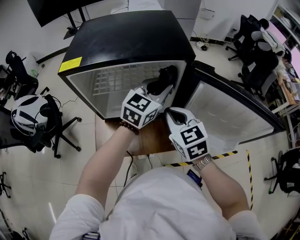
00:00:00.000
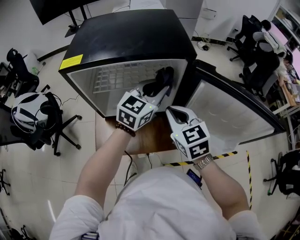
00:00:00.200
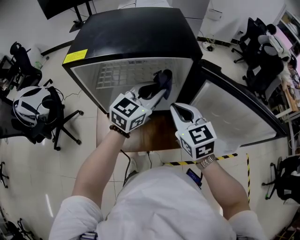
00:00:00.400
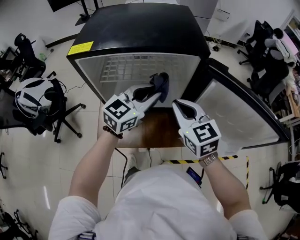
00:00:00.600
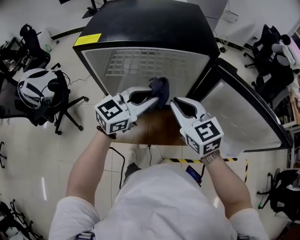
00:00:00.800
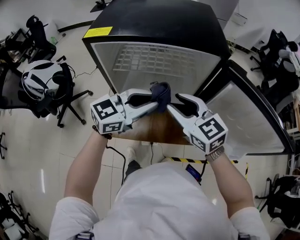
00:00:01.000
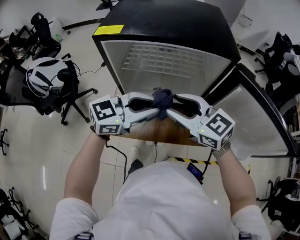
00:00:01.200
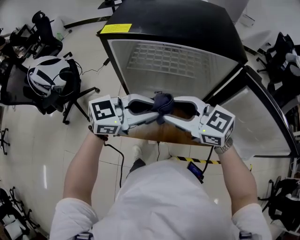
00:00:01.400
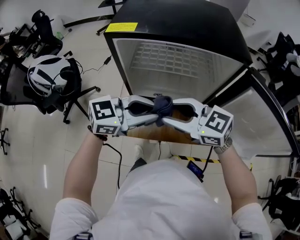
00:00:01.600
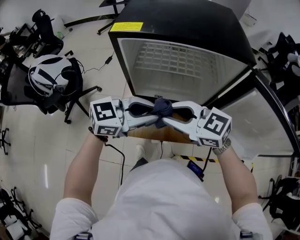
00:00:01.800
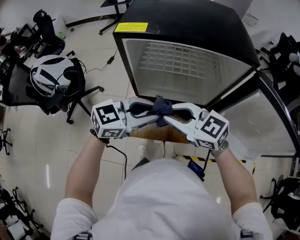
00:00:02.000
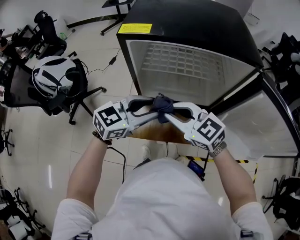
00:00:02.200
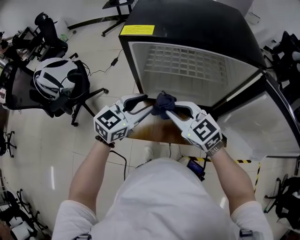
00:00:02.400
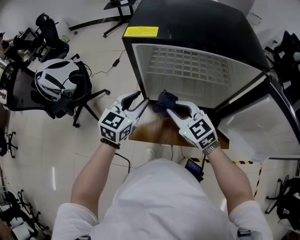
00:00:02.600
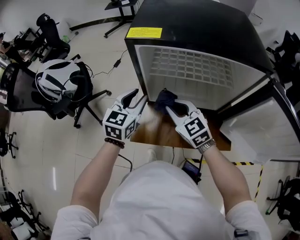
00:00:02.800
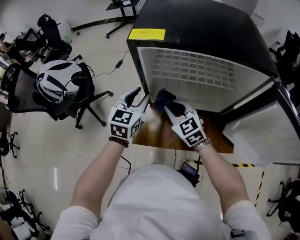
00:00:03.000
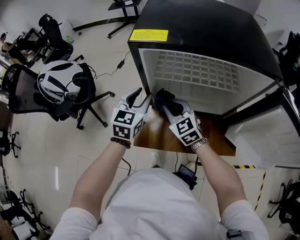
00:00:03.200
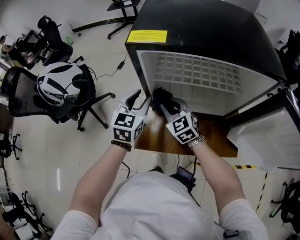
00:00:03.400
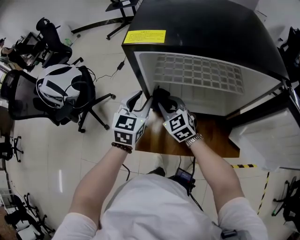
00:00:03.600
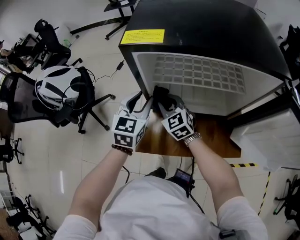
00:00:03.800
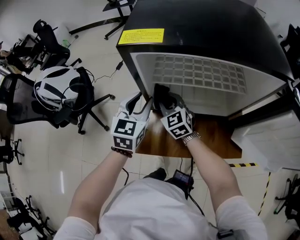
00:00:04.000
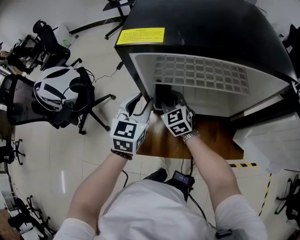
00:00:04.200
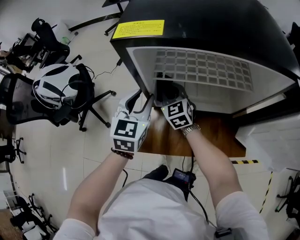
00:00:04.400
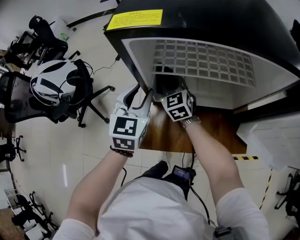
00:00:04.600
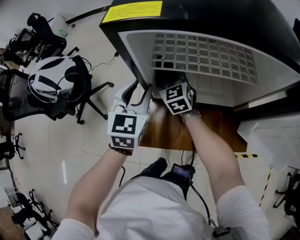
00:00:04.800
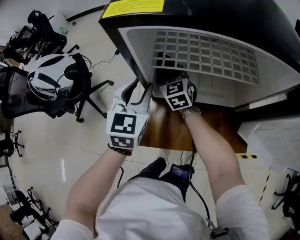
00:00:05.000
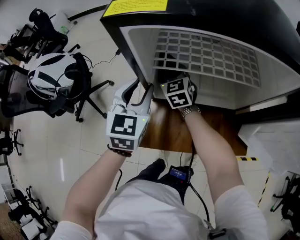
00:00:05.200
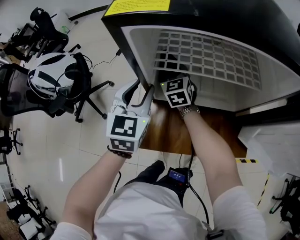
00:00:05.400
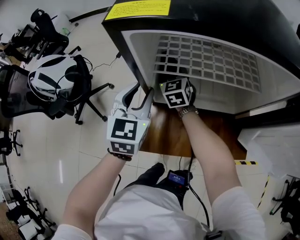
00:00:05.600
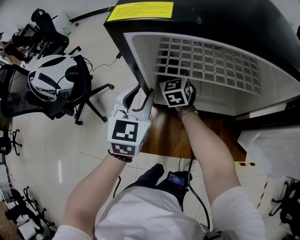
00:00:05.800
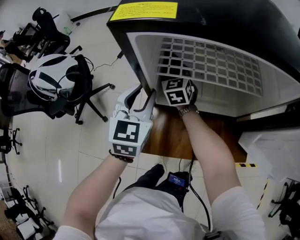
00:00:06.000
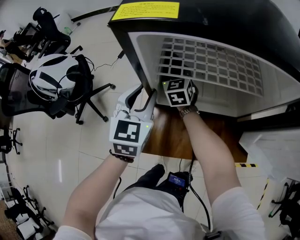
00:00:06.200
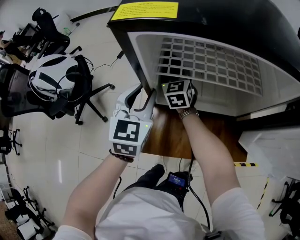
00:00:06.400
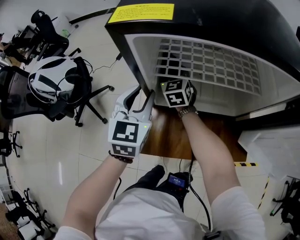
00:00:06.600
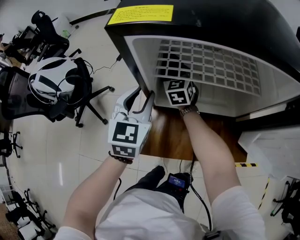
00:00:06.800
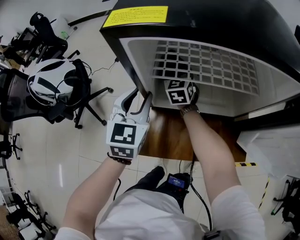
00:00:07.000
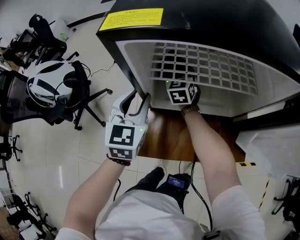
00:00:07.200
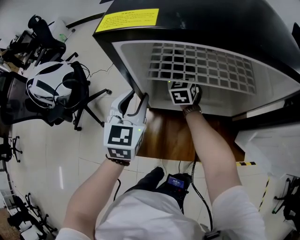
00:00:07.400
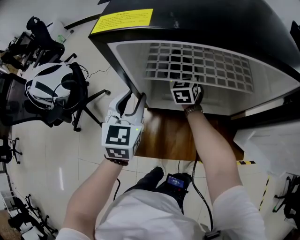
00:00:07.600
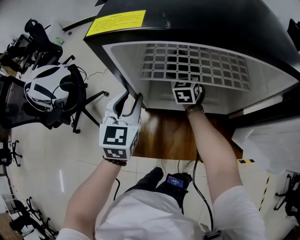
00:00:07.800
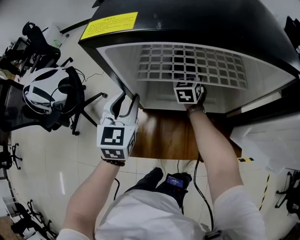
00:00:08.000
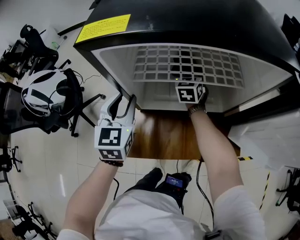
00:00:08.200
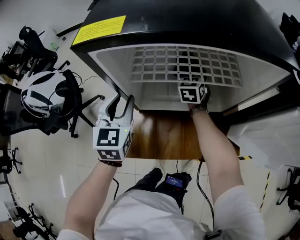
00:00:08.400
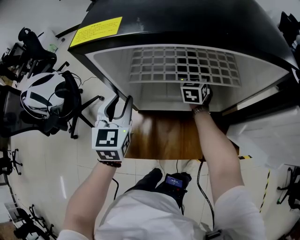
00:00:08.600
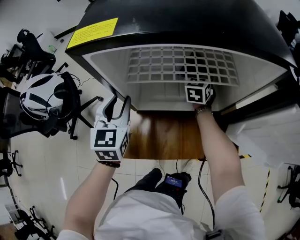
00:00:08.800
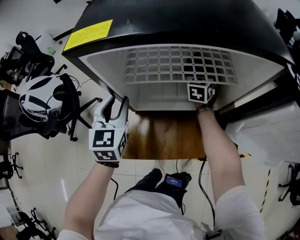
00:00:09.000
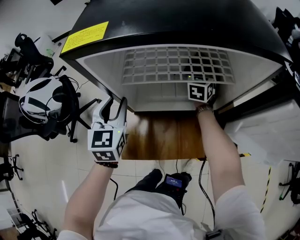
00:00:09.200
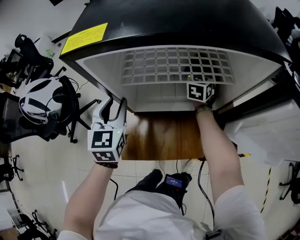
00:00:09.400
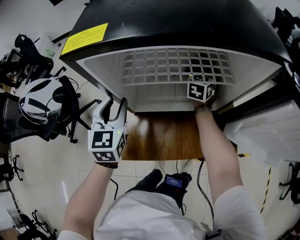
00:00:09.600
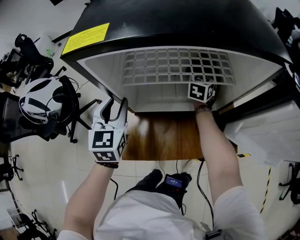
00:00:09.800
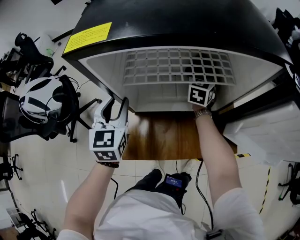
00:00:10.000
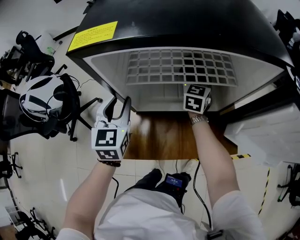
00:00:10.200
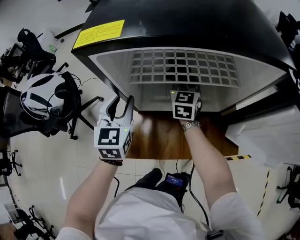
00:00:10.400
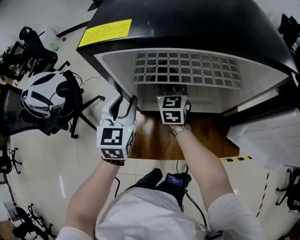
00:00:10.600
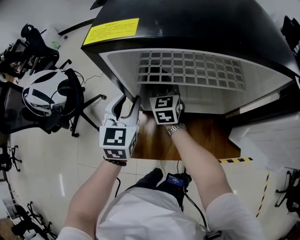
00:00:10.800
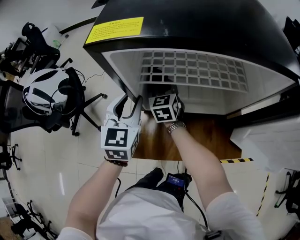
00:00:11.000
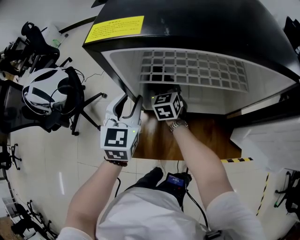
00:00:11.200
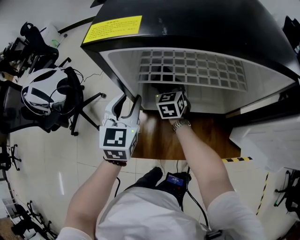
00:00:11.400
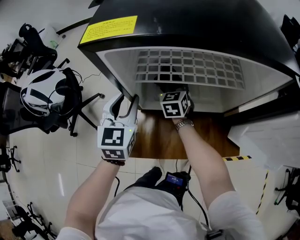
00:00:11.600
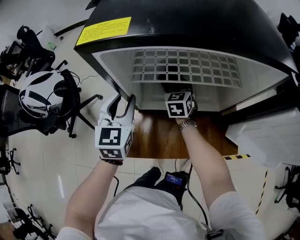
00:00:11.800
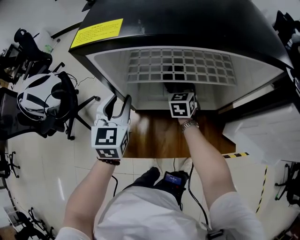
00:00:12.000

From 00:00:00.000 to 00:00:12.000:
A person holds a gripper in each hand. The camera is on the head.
From 00:00:00.000 to 00:00:01.600: The left gripper ends up approximately 25 cm from where it was, and rotates approximately 30 degrees, while the right gripper ends up some 15 cm from where it was, swivels some 50 degrees, and opens its fingers.
From 00:00:01.600 to 00:00:03.000: The right gripper ends up some 20 cm from where it was, rotates approximately 30 degrees, and closes its fingers. The left gripper shifts by about 20 cm, rotates some 50 degrees, and opens.
From 00:00:03.000 to 00:00:04.400: The right gripper heads forward and downward, covering about 15 cm.
From 00:00:04.400 to 00:00:06.000: The right gripper moves forward, about 10 cm.
From 00:00:06.000 to 00:00:07.600: The right gripper travels to the right by approximately 10 cm.
From 00:00:07.600 to 00:00:09.000: The right gripper heads to the right, covering about 15 cm.
From 00:00:09.000 to 00:00:10.400: The right gripper shifts some 10 cm to the left and backward.
From 00:00:10.400 to 00:00:12.000: The right gripper is displaced downward by approximately 10 cm, and moves some 15 cm to the left and comes back.

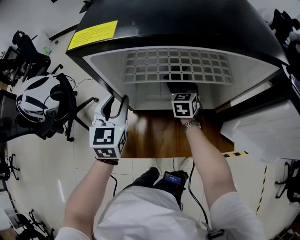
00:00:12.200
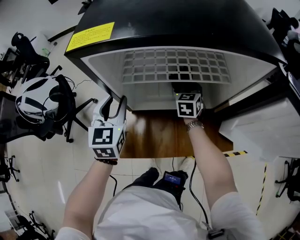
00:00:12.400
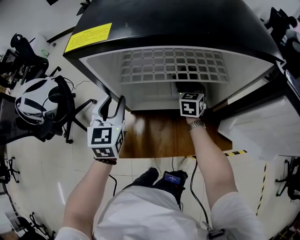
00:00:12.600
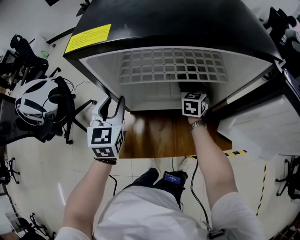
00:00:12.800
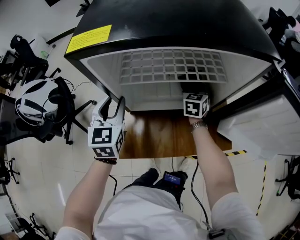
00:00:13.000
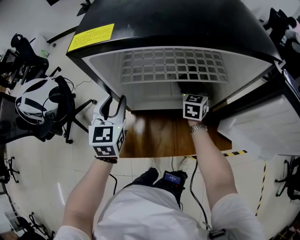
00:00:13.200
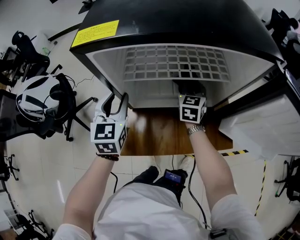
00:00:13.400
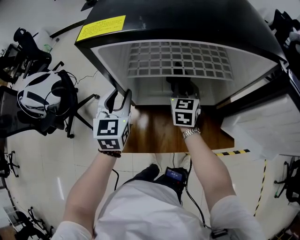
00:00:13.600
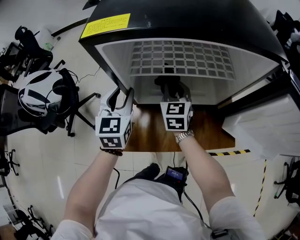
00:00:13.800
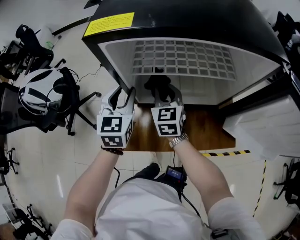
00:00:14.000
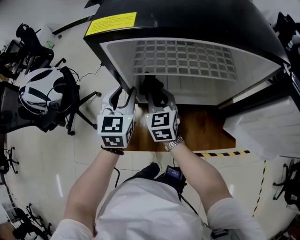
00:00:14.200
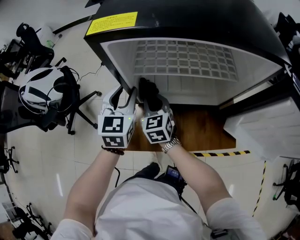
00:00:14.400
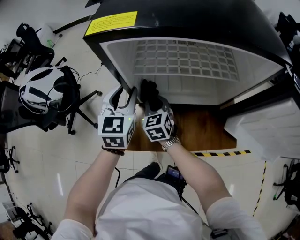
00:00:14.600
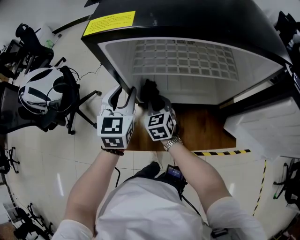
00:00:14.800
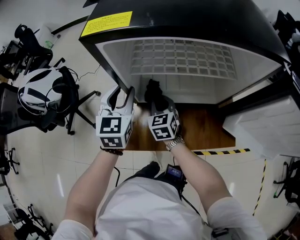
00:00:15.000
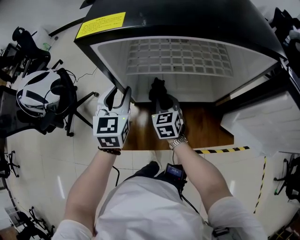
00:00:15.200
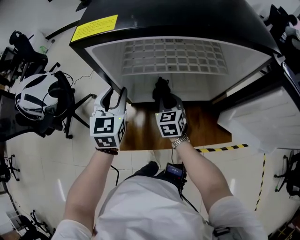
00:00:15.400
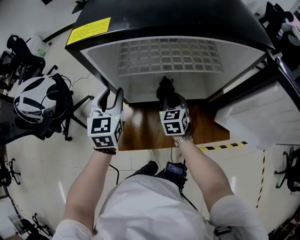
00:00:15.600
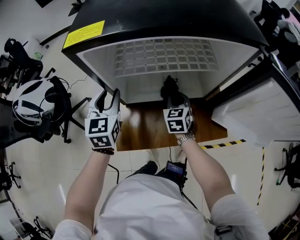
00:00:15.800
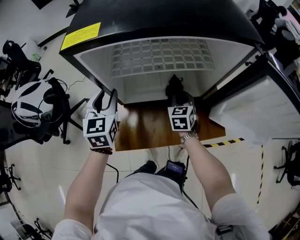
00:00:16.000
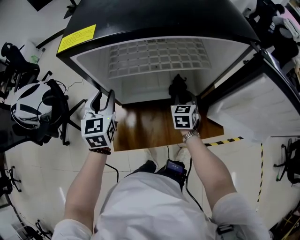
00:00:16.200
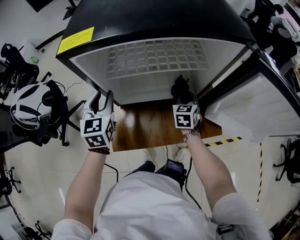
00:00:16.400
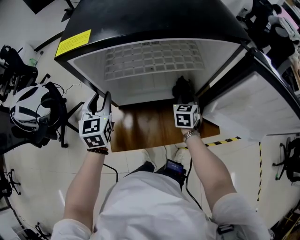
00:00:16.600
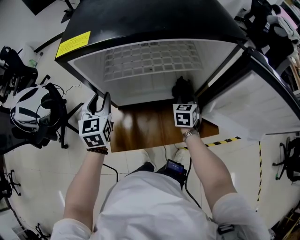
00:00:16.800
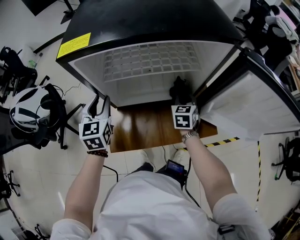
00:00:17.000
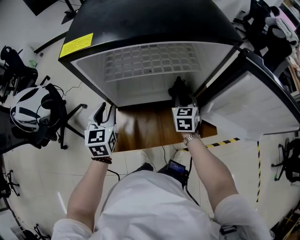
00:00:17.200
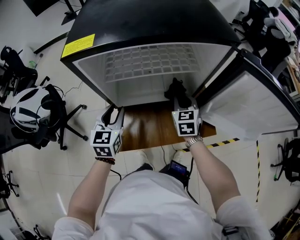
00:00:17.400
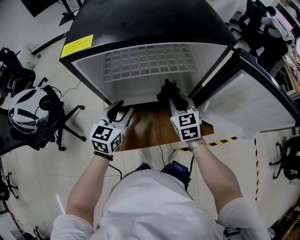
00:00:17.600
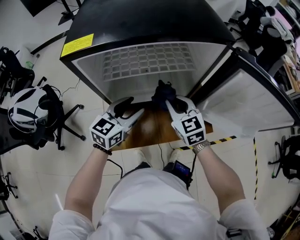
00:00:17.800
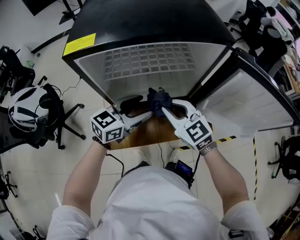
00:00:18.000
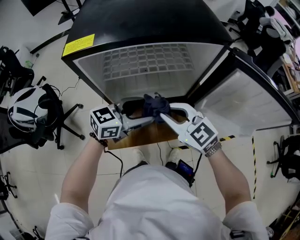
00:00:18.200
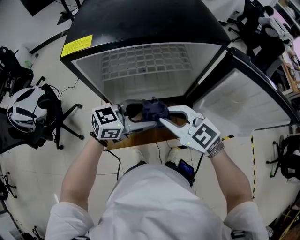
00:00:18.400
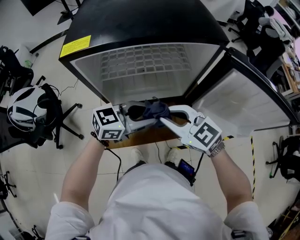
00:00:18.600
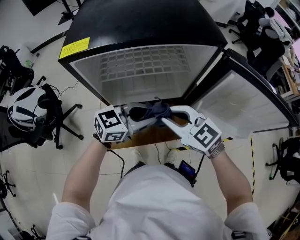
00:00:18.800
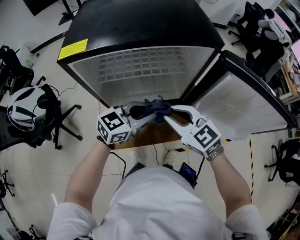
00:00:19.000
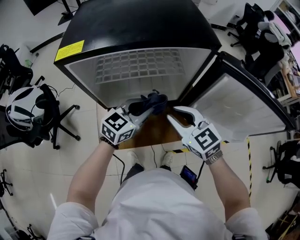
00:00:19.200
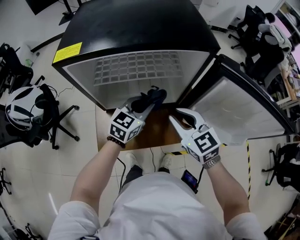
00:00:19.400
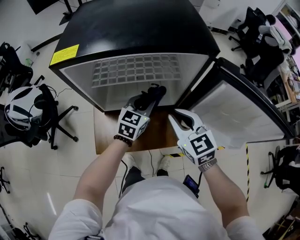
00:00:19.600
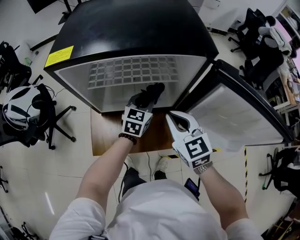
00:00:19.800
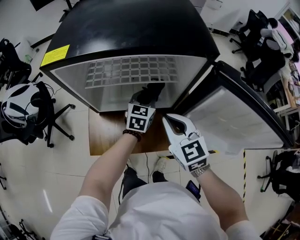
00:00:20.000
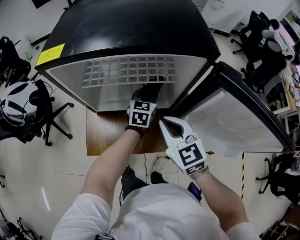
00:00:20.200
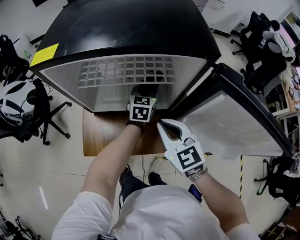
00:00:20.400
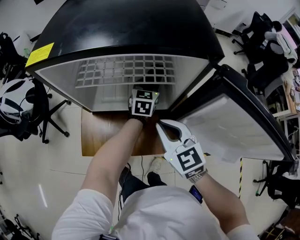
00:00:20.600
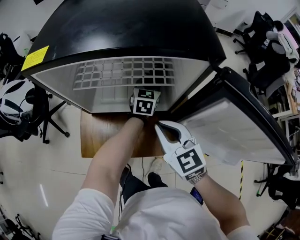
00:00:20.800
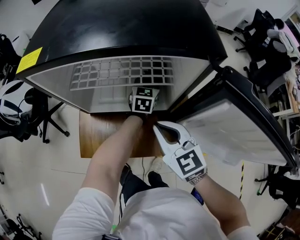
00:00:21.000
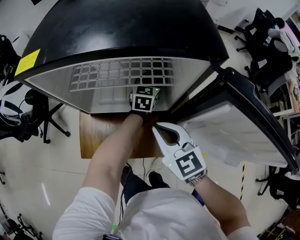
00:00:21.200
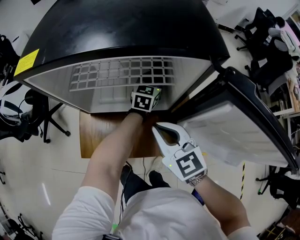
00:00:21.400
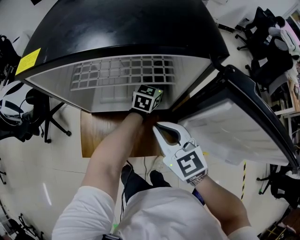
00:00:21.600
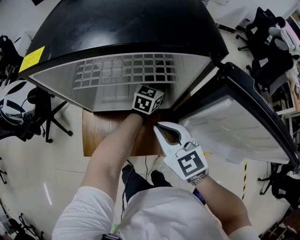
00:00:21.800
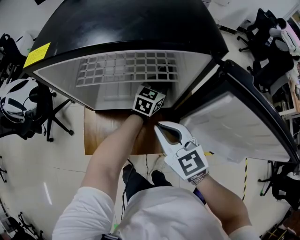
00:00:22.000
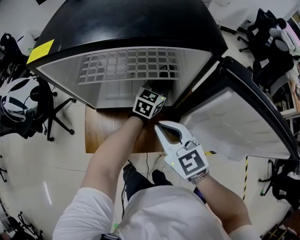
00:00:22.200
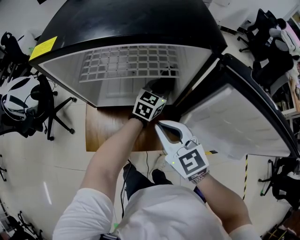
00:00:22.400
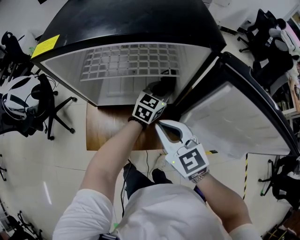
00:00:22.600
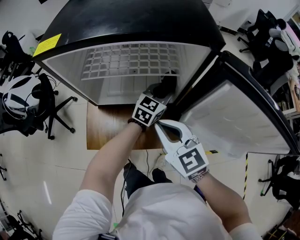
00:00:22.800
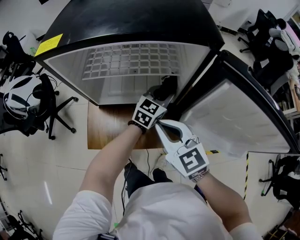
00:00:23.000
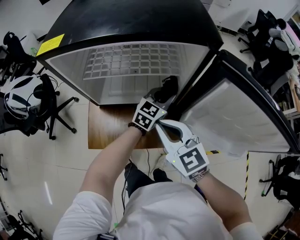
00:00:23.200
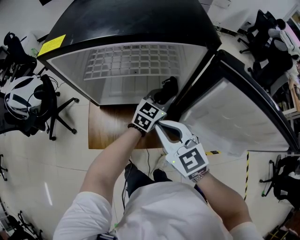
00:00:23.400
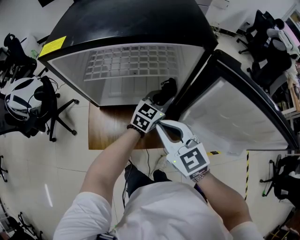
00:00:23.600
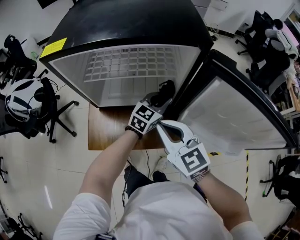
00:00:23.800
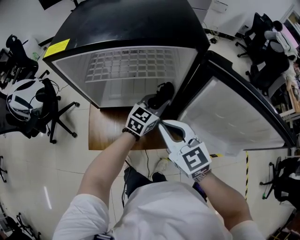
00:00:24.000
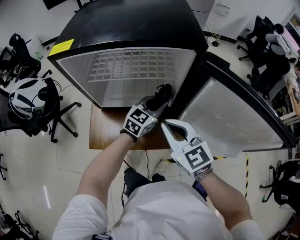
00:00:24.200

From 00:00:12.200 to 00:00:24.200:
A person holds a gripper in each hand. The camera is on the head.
From 00:00:12.200 to 00:00:13.800: The right gripper is displaced backward, to the left and upward by some 10 cm.
From 00:00:13.800 to 00:00:15.200: The right gripper shifts about 10 cm downward, and travels to the left and back again, about 10 cm each way.
From 00:00:15.200 to 00:00:16.600: The right gripper moves to the right, some 20 cm, and rotates approximately 20 degrees.
From 00:00:16.600 to 00:00:18.200: The right gripper moves upward, backward and to the left, approximately 25 cm, and rotates roughly 60 degrees. Meanwhile the left gripper heads to the right, covering some 20 cm, changes its angle by about 70 degrees, and opens.
From 00:00:18.200 to 00:00:19.800: The left gripper moves about 15 cm, turns by roughly 40 degrees, and closes up, while the right gripper moves approximately 10 cm, and turns by about 20 degrees.
From 00:00:19.800 to 00:00:21.200: The left gripper travels forward and to the right by roughly 15 cm.
From 00:00:21.200 to 00:00:22.600: The left gripper heads backward, covering approximately 10 cm, and turns by some 20 degrees.
From 00:00:22.600 to 00:00:24.200: The left gripper travels backward by approximately 5 cm.
